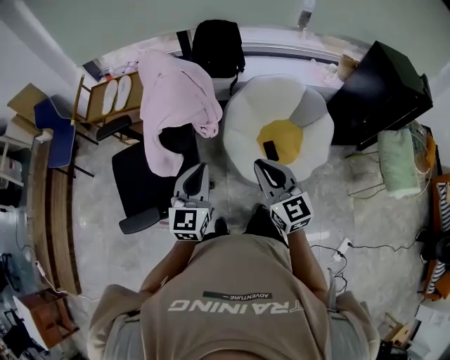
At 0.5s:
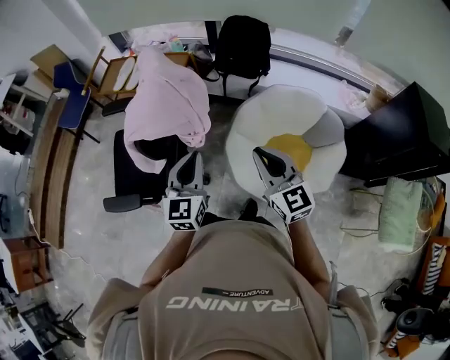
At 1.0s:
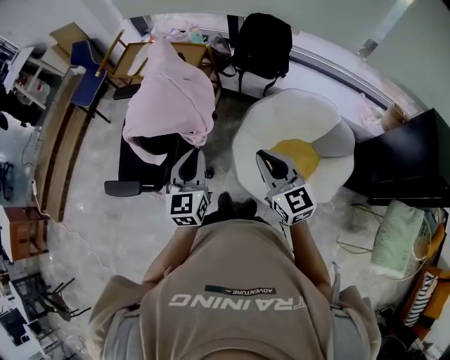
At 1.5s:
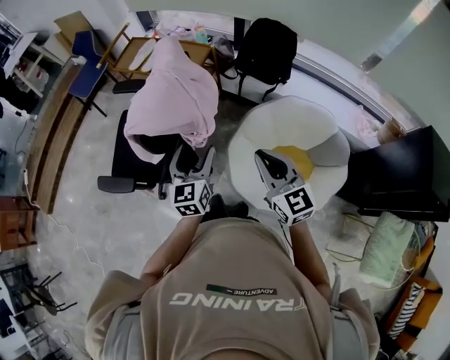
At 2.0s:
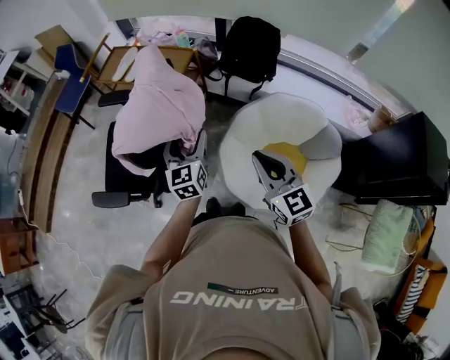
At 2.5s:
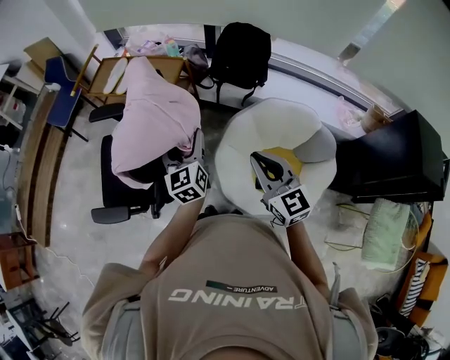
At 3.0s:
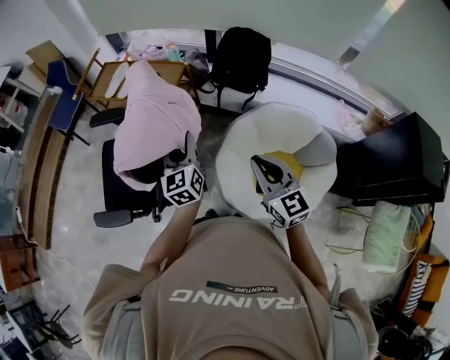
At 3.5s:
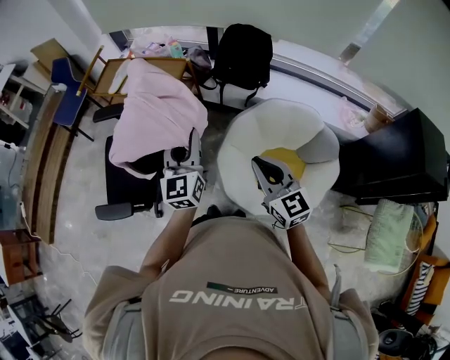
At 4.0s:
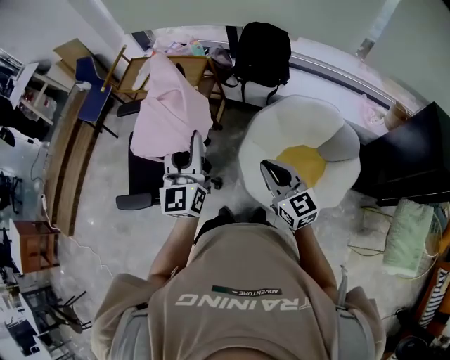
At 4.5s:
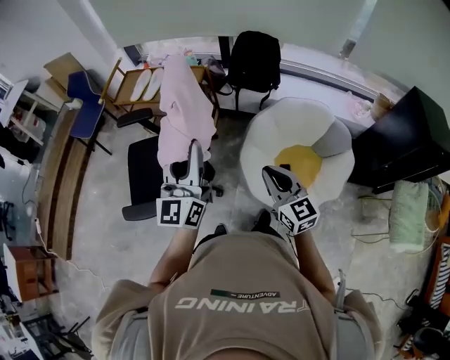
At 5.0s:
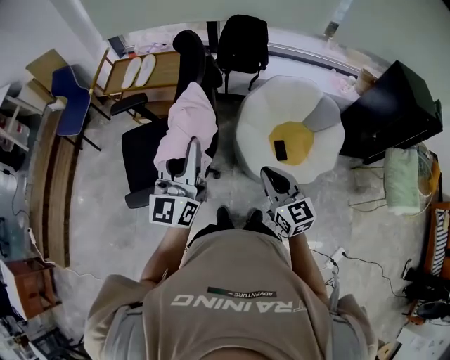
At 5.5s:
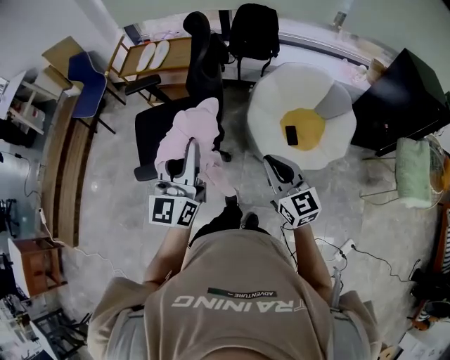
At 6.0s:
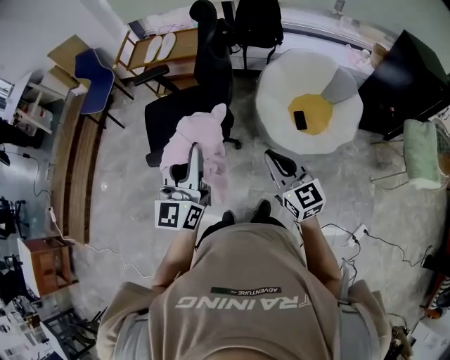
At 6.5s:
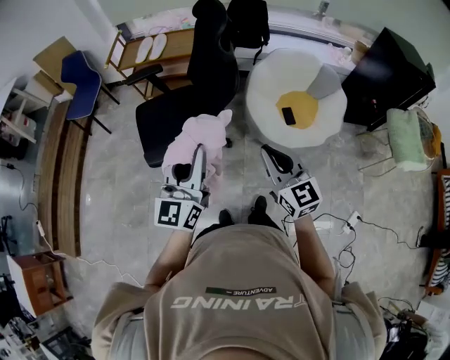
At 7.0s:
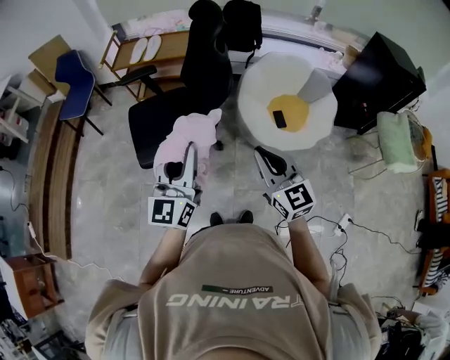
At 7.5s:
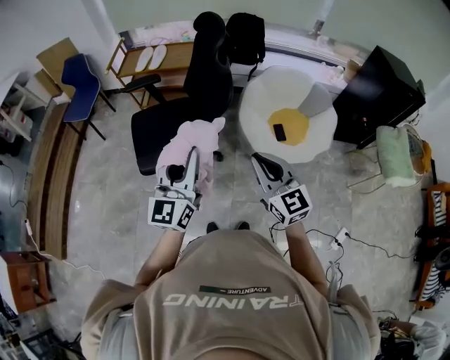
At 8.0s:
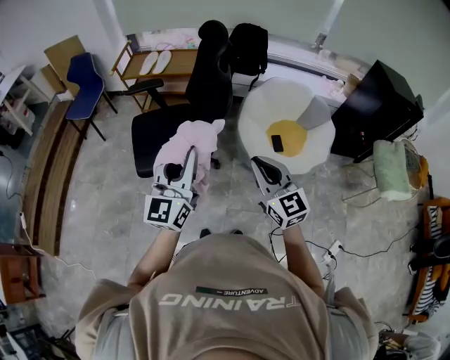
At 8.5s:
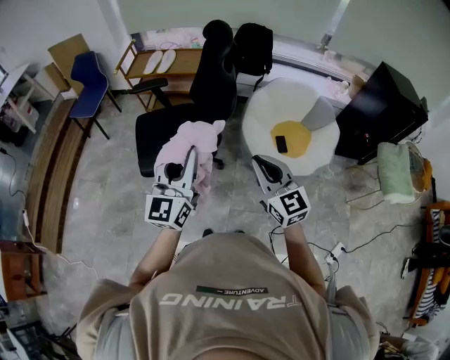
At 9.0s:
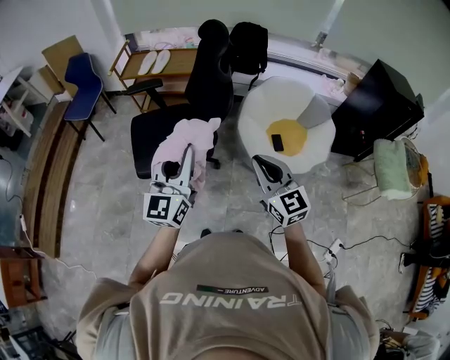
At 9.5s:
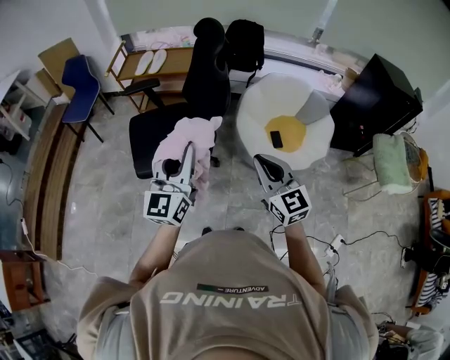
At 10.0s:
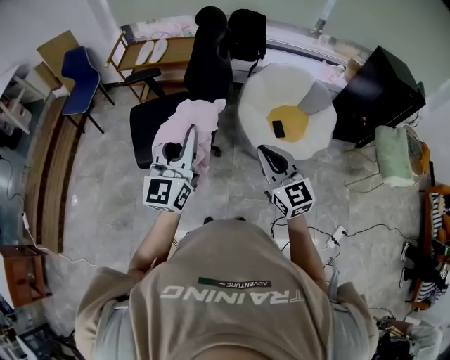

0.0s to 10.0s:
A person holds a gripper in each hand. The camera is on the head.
0.0s to 2.0s: The right gripper shifts by approximately 20 cm, and swivels some 20 degrees. Meanwhile the left gripper ends up some 20 cm from where it was, changes its angle by about 40 degrees, and opens.
2.0s to 4.0s: The left gripper moves upward and backward, about 15 cm, turns by some 20 degrees, and closes.
4.0s to 6.0s: The two grippers go about 35 cm backward and to the left.
6.0s to 8.0s: The left gripper moves roughly 5 cm. Meanwhile the right gripper goes approximately 10 cm upward and to the left.
8.0s to 10.0s: The grippers make only small movements.

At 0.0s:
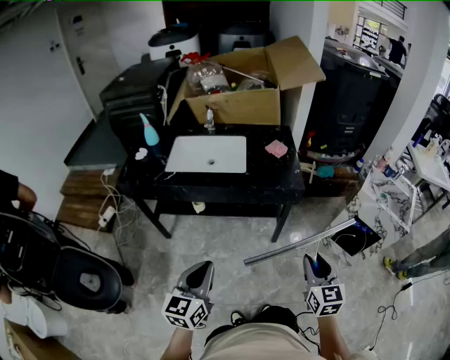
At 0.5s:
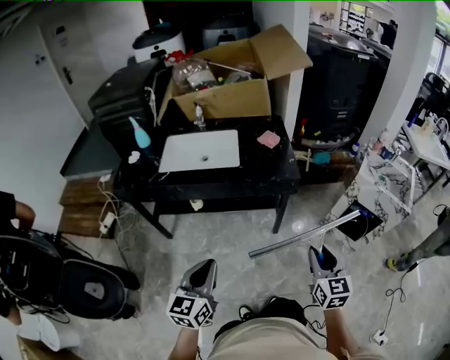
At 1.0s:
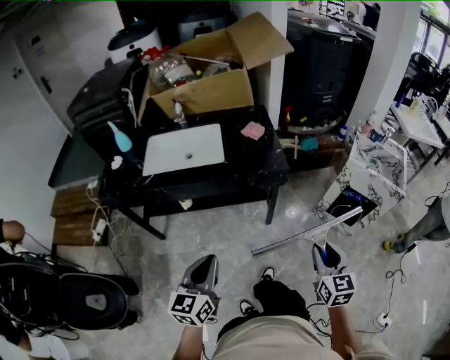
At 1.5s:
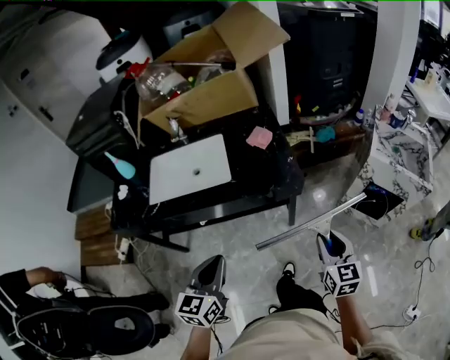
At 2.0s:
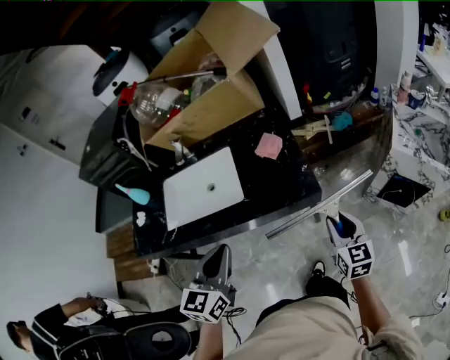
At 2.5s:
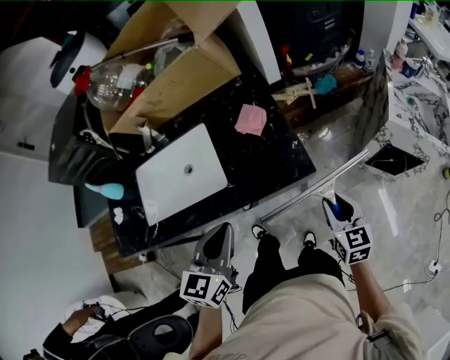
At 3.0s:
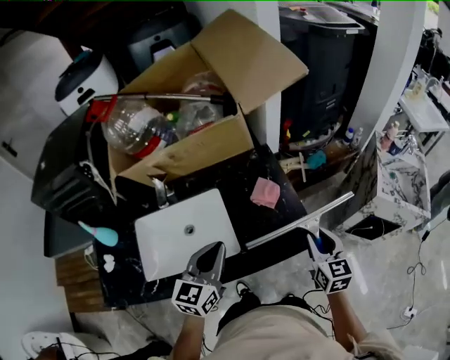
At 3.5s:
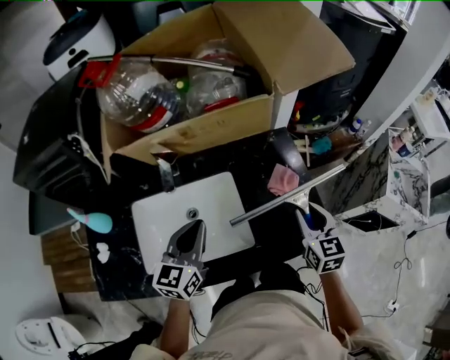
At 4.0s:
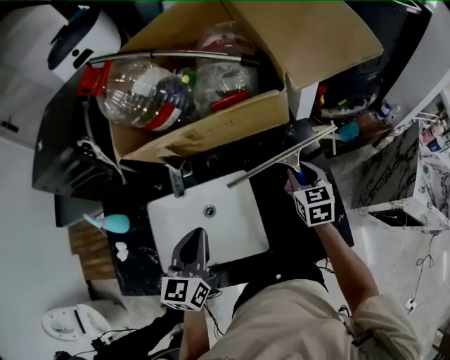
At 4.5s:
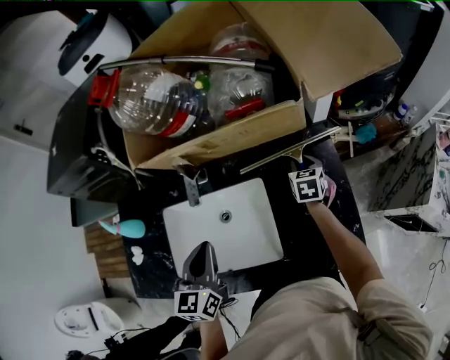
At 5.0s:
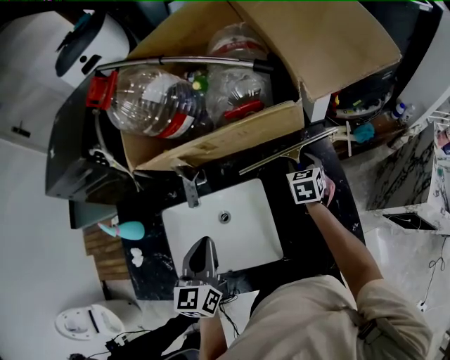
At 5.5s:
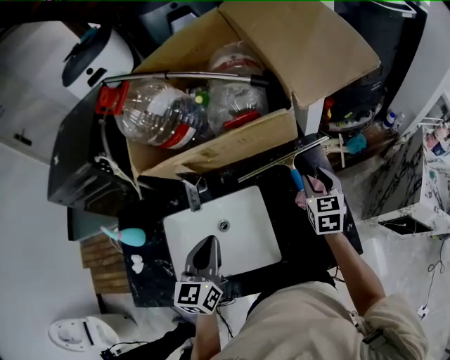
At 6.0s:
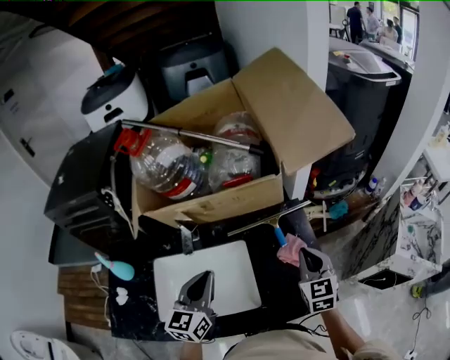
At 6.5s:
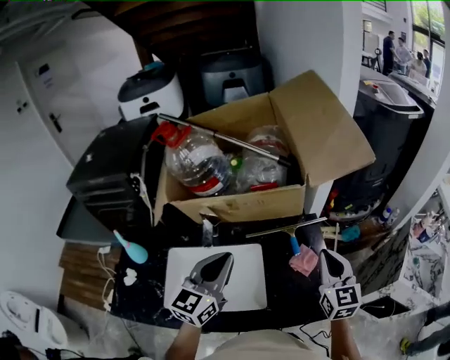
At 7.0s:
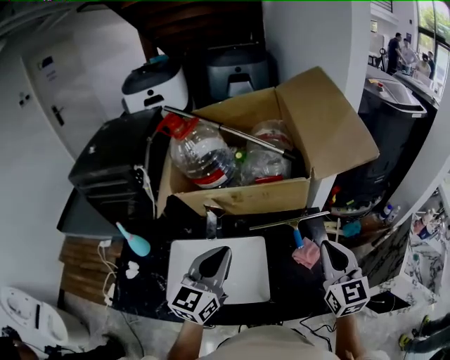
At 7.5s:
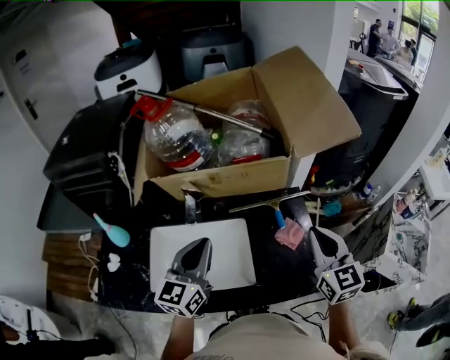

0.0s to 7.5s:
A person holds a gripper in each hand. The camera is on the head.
0.0s to 2.0s: The two grippers go about 25 cm forward.
2.0s to 4.0s: Both grippers travel together forward and to the left, some 40 cm.
4.0s to 5.5s: The right gripper goes downward and returns, approximately 5 cm each way.
5.5s to 7.5s: The right gripper is displaced upward and backward by about 25 cm, swivels approximately 30 degrees, and closes; the left gripper shifts approximately 10 cm upward.

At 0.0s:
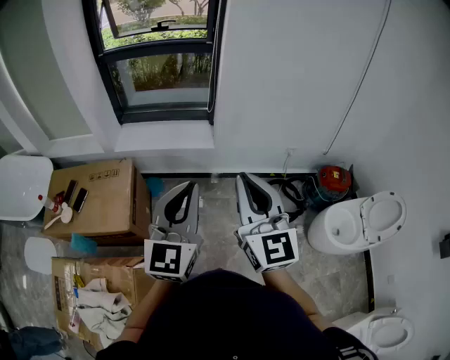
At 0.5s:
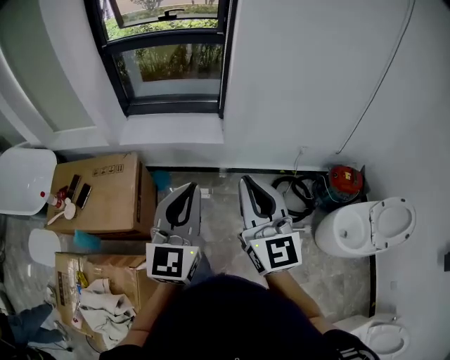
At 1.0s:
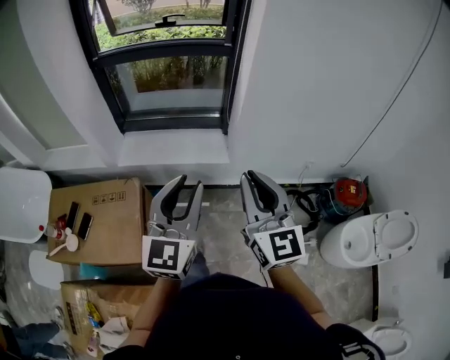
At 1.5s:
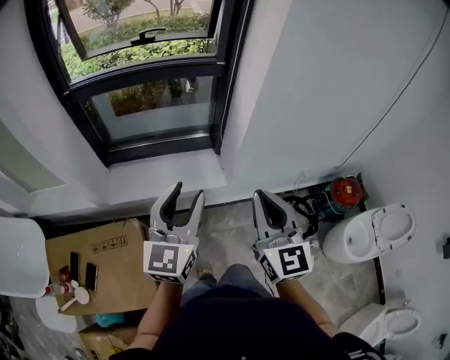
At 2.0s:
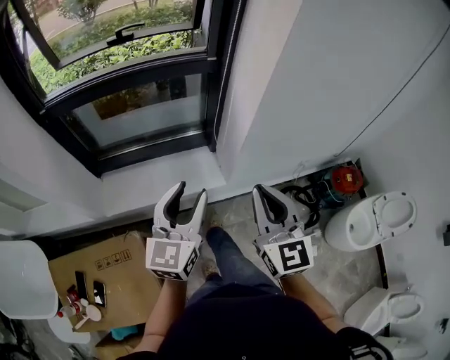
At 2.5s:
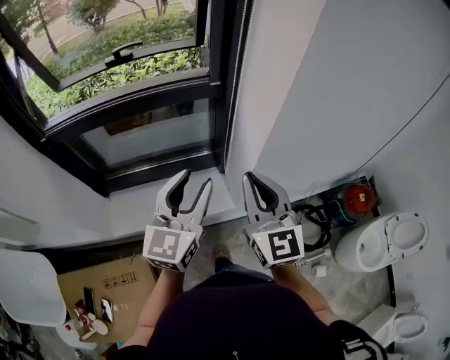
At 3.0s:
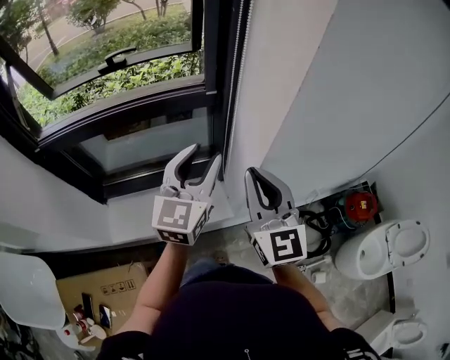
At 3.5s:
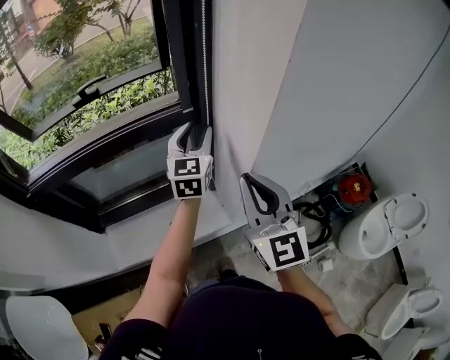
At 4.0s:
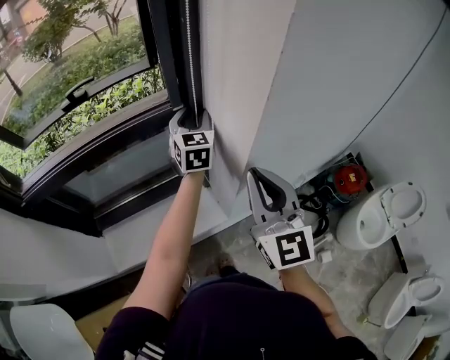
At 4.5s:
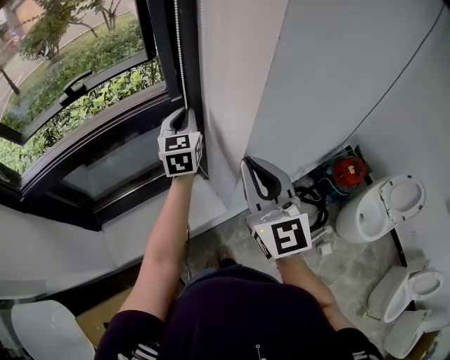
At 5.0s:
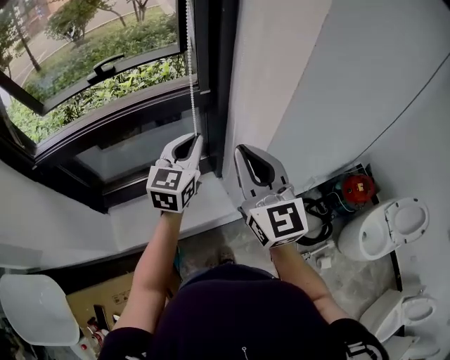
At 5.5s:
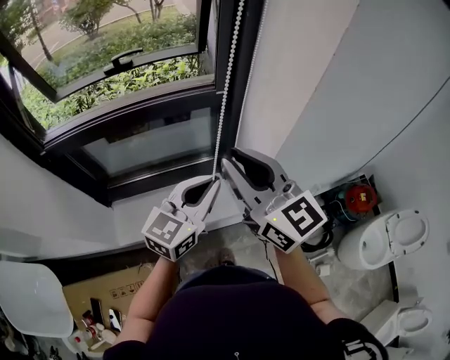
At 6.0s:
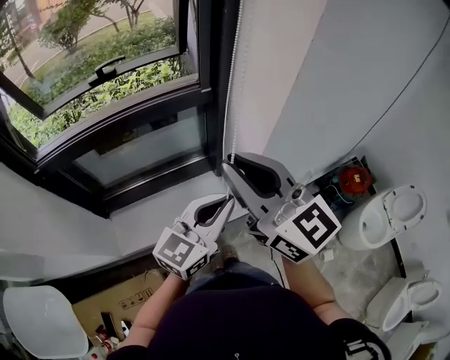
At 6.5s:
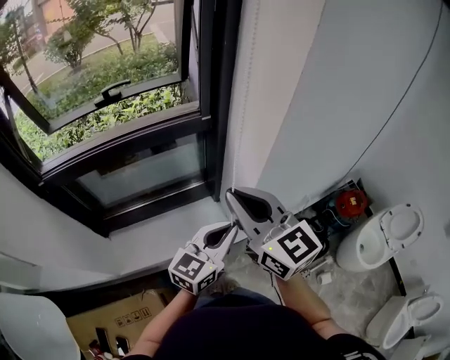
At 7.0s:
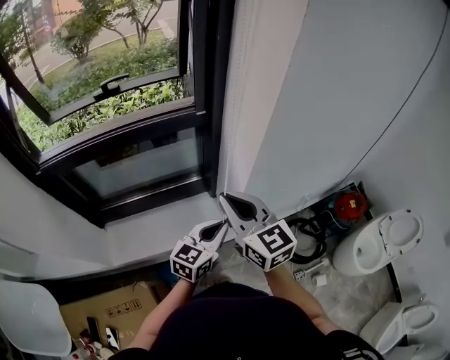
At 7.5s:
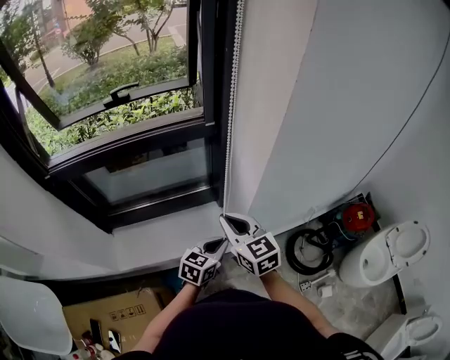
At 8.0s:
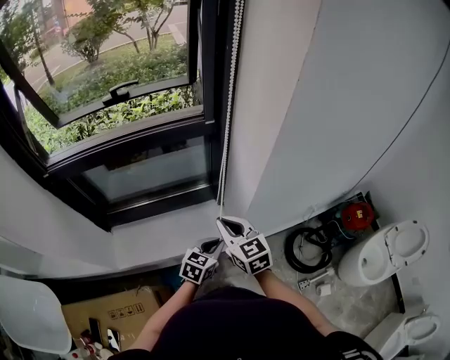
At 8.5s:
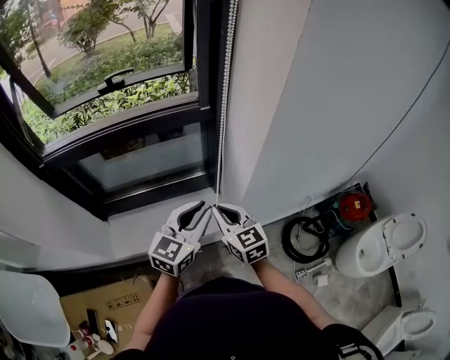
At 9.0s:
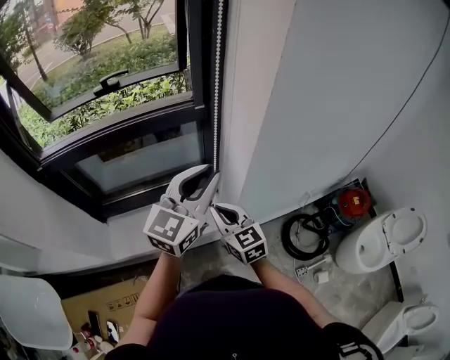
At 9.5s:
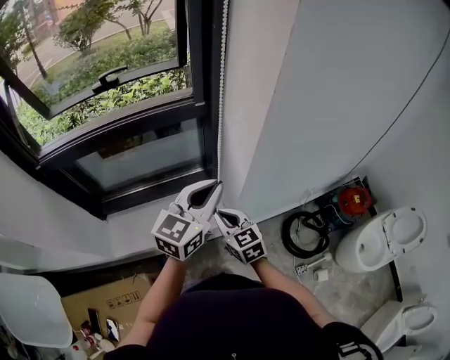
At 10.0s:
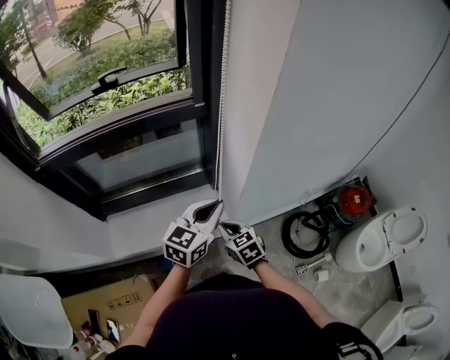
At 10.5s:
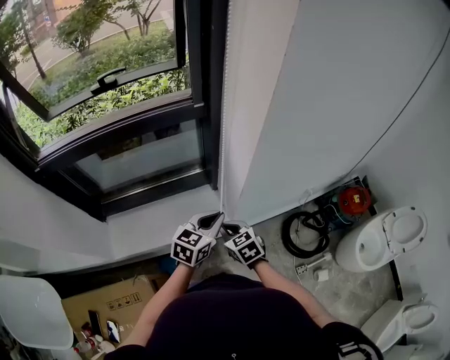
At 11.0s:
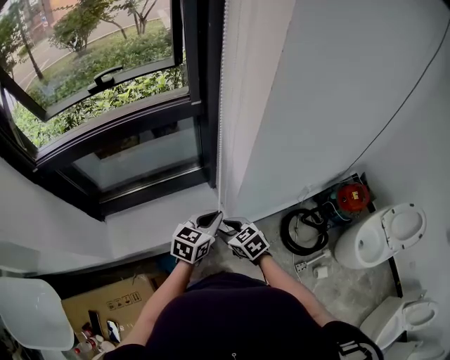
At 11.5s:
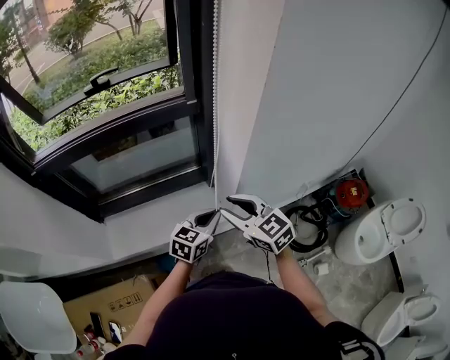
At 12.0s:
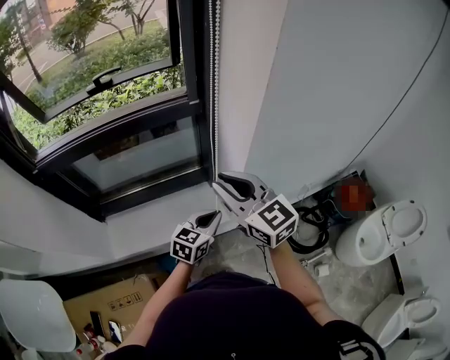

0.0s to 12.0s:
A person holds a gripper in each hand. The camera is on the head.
0.0s to 2.0s: Both grippers are carried forward, approximately 40 cm. The right gripper rotates approximately 20 degrees. Meanwhile the left gripper opens up.
2.0s to 4.0s: The left gripper goes some 40 cm forward, while the right gripper moves forward, approximately 20 cm.
4.0s to 6.0s: The right gripper shifts roughly 15 cm to the left, backward and upward, and swivels roughly 30 degrees; the left gripper moves backward, roughly 35 cm, rotates approximately 40 degrees, and closes.
6.0s to 8.0s: The two grippers go about 25 cm downward. The right gripper turns by roughly 30 degrees. Meanwhile the left gripper tips its fingers downward by roughly 30 degrees.
8.0s to 10.0s: The right gripper goes about 10 cm downward. The left gripper is displaced upward by roughly 15 cm, and rotates some 20 degrees.
10.0s to 12.0s: The left gripper is displaced downward by some 10 cm, while the right gripper goes about 25 cm upward, and points its fingers some 30 degrees further upward.
